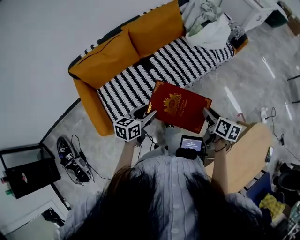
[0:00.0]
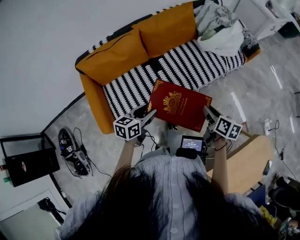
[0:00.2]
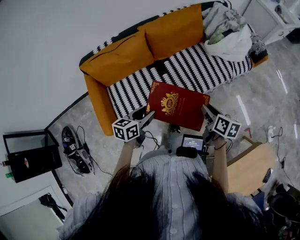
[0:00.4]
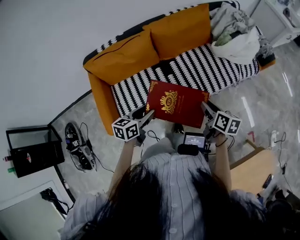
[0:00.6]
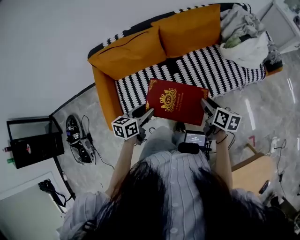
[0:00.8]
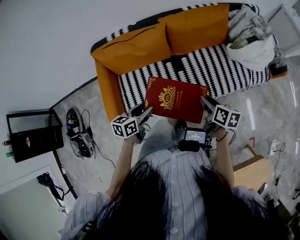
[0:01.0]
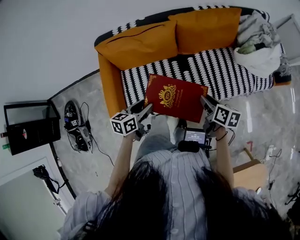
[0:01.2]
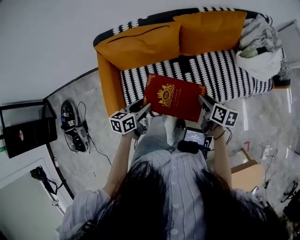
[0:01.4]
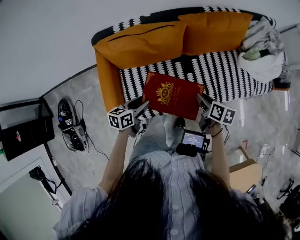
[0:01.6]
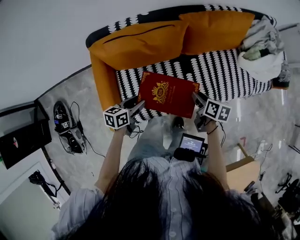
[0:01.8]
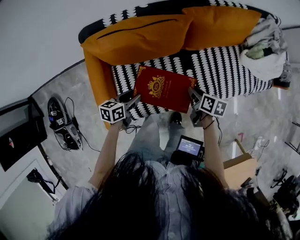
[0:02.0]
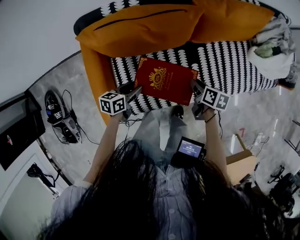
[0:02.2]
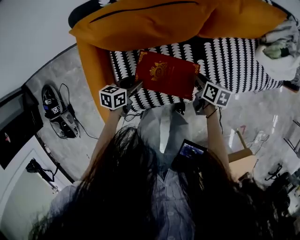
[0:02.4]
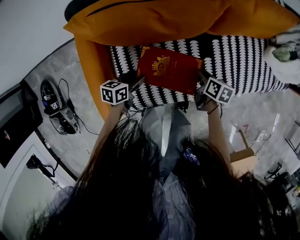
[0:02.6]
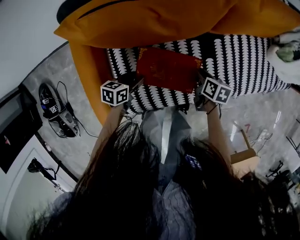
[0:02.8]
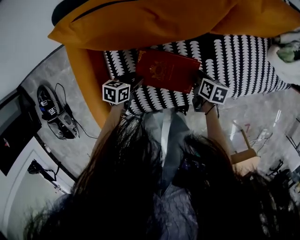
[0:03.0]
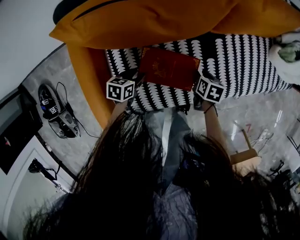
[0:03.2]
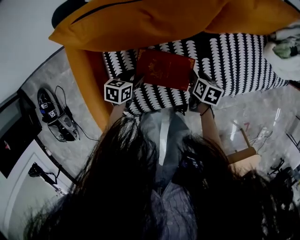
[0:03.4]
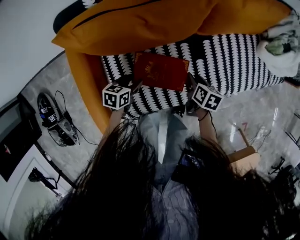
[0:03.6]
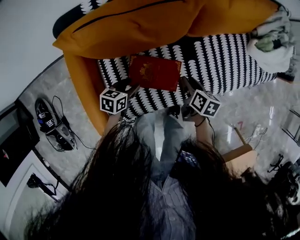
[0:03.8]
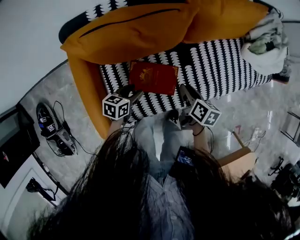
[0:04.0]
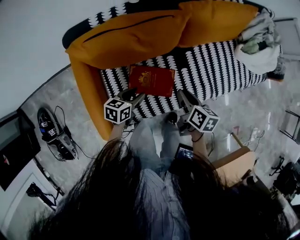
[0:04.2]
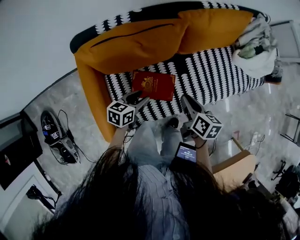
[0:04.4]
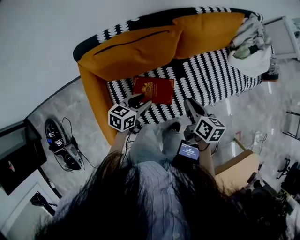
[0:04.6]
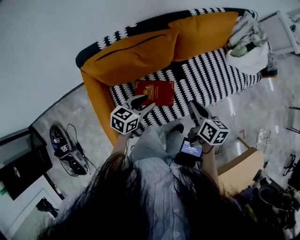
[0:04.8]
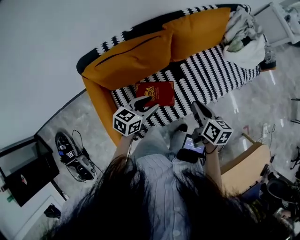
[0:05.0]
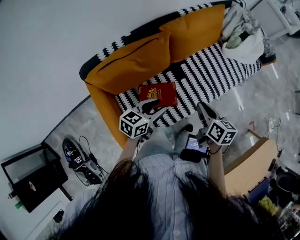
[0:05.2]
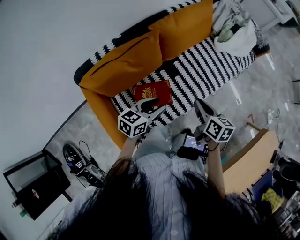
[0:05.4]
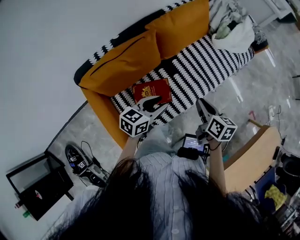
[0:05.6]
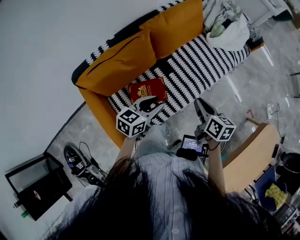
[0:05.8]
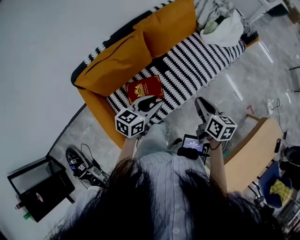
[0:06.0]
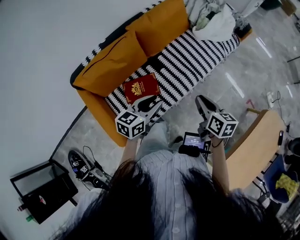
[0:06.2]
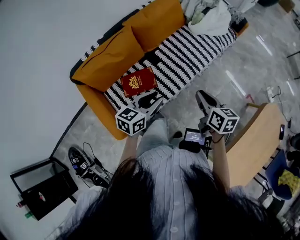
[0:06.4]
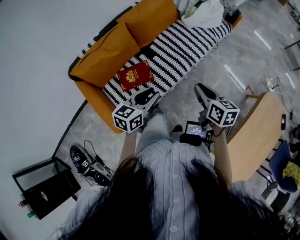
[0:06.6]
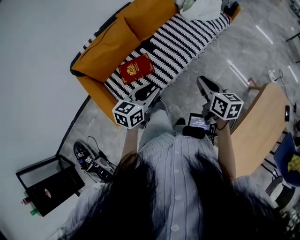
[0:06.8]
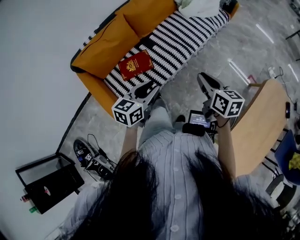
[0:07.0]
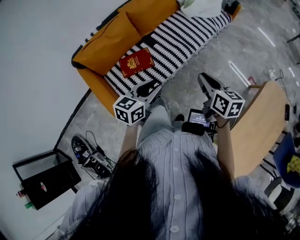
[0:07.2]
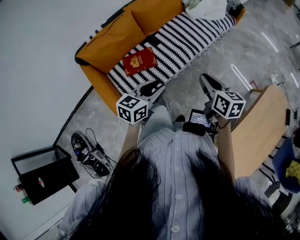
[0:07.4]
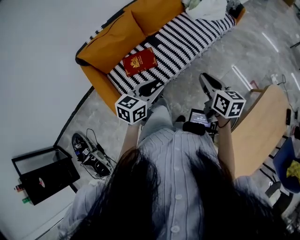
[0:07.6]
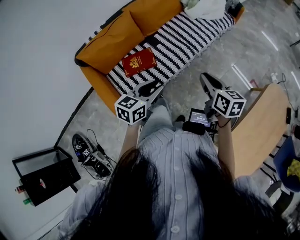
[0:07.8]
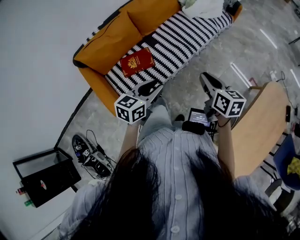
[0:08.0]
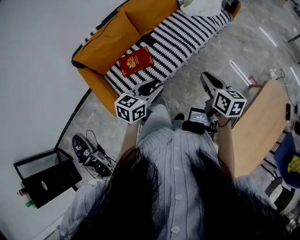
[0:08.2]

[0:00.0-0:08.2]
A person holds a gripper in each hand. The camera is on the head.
0:00.0 to 0:01.6: The left gripper ends up about 30 cm from where it was, and changes its angle by approximately 30 degrees. The right gripper moves approximately 35 cm, and rotates approximately 30 degrees.
0:01.6 to 0:03.2: The grippers both shift downward by approximately 30 cm. The right gripper swivels about 30 degrees.
0:03.2 to 0:05.0: Both grippers travel together upward, roughly 35 cm. The left gripper changes its angle by some 40 degrees. Meanwhile the right gripper tips its fingers upward by approximately 30 degrees, and closes its fingers.
0:05.0 to 0:06.6: The left gripper travels to the right, backward and upward by roughly 30 cm. The right gripper shifts roughly 30 cm to the right and backward.
0:06.6 to 0:08.2: Both grippers move backward, about 5 cm.

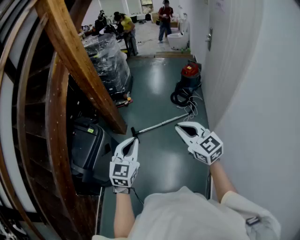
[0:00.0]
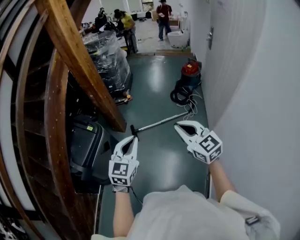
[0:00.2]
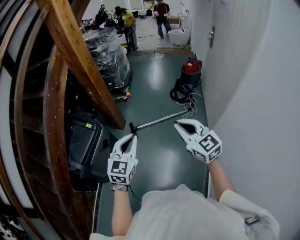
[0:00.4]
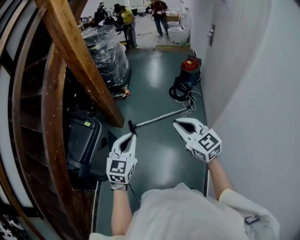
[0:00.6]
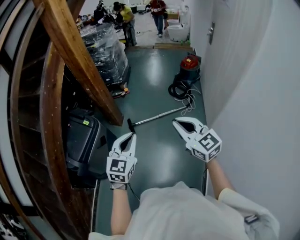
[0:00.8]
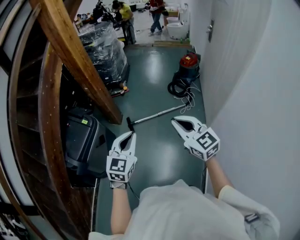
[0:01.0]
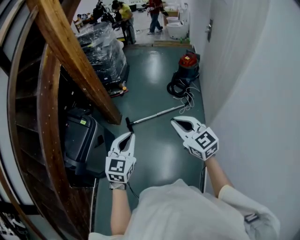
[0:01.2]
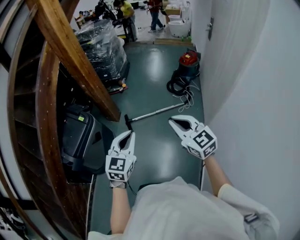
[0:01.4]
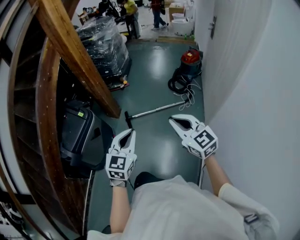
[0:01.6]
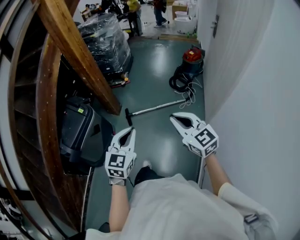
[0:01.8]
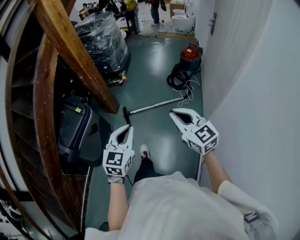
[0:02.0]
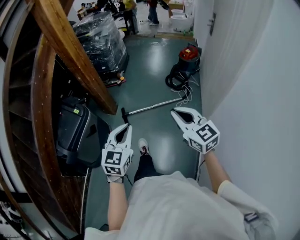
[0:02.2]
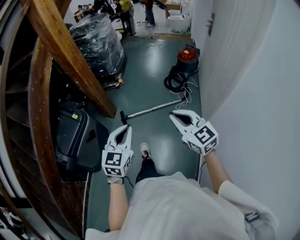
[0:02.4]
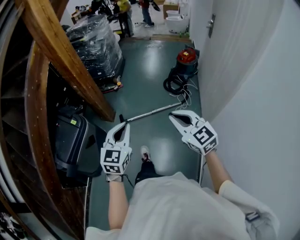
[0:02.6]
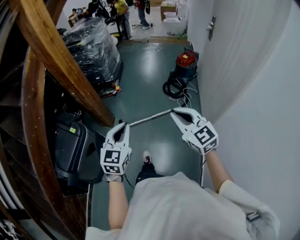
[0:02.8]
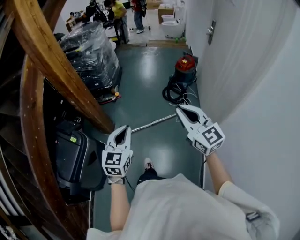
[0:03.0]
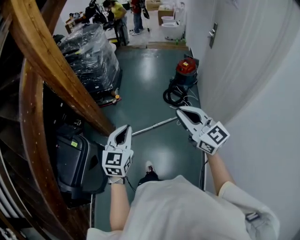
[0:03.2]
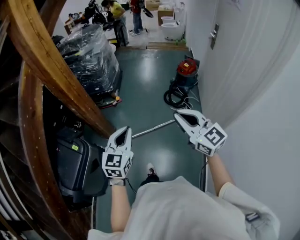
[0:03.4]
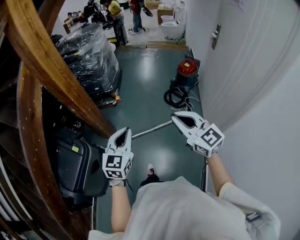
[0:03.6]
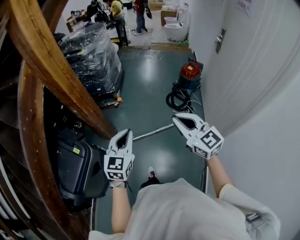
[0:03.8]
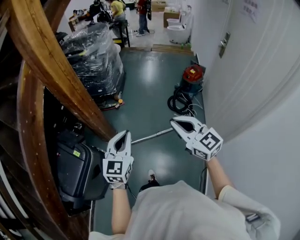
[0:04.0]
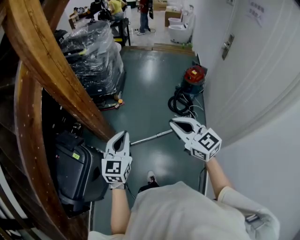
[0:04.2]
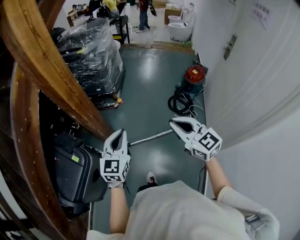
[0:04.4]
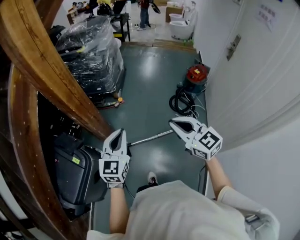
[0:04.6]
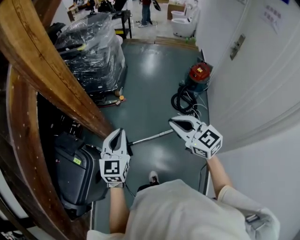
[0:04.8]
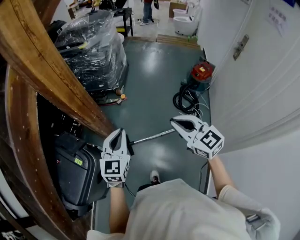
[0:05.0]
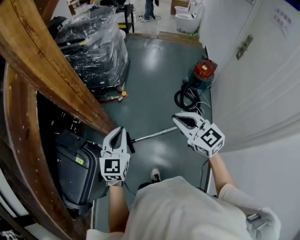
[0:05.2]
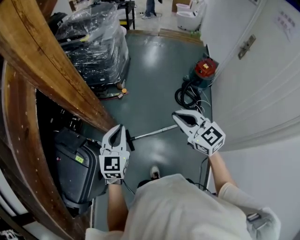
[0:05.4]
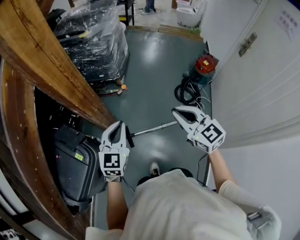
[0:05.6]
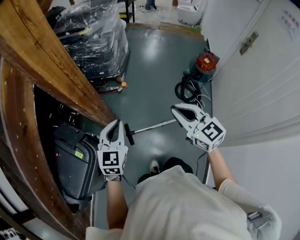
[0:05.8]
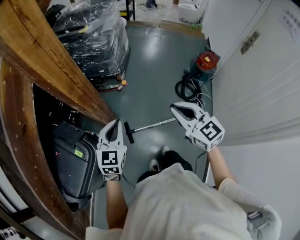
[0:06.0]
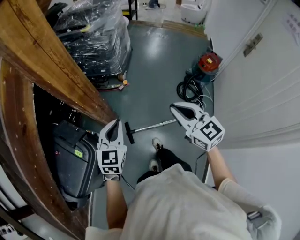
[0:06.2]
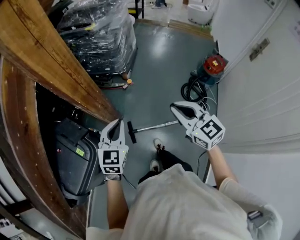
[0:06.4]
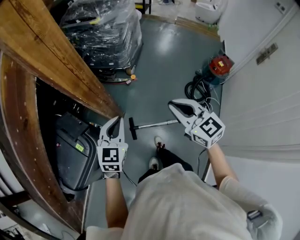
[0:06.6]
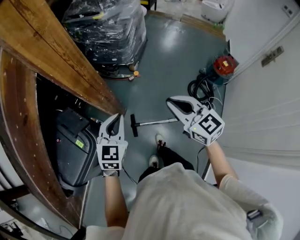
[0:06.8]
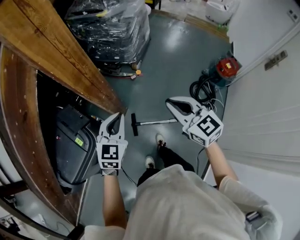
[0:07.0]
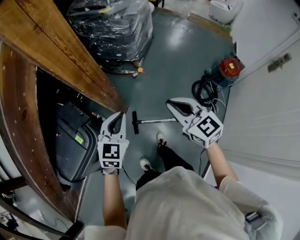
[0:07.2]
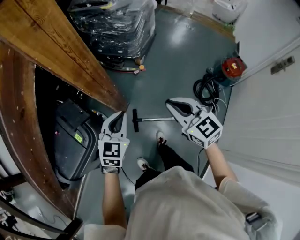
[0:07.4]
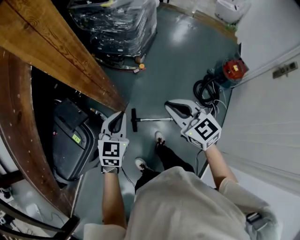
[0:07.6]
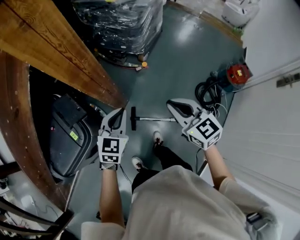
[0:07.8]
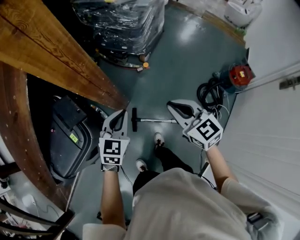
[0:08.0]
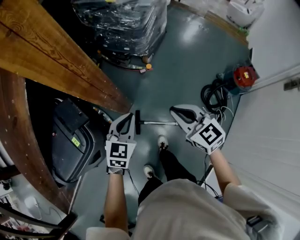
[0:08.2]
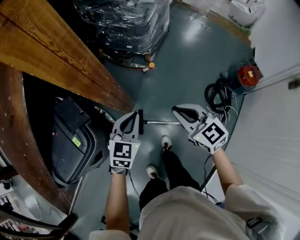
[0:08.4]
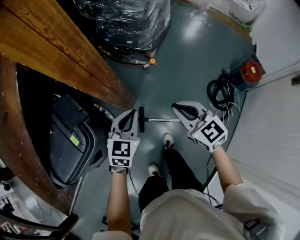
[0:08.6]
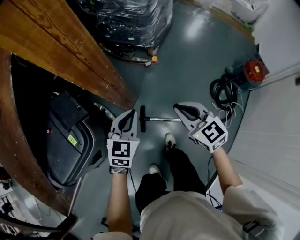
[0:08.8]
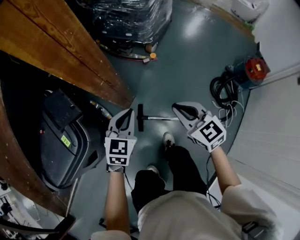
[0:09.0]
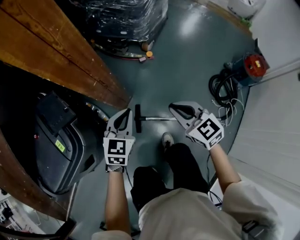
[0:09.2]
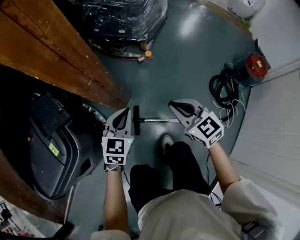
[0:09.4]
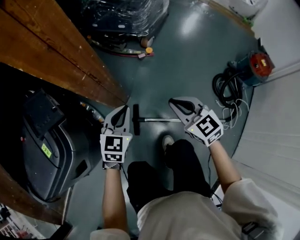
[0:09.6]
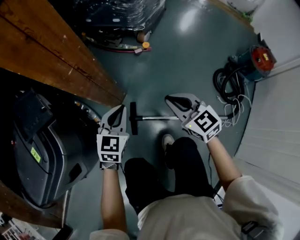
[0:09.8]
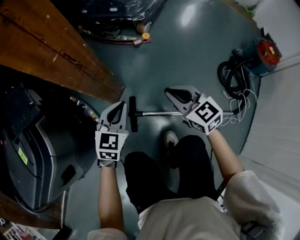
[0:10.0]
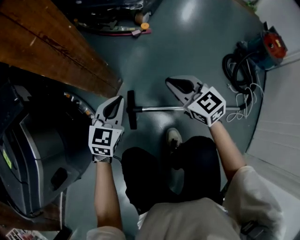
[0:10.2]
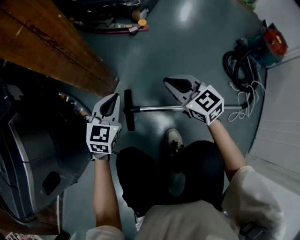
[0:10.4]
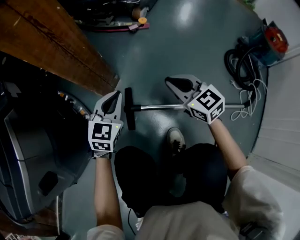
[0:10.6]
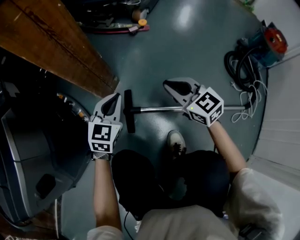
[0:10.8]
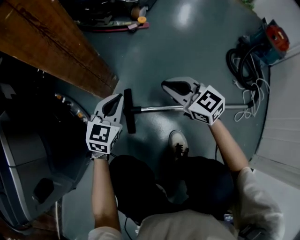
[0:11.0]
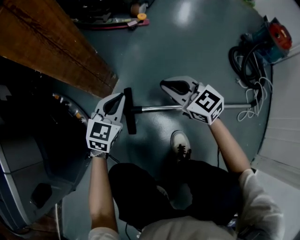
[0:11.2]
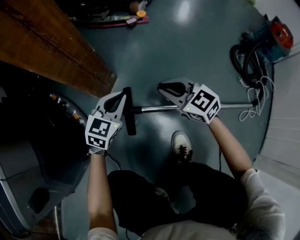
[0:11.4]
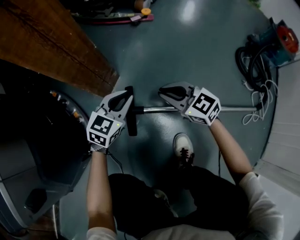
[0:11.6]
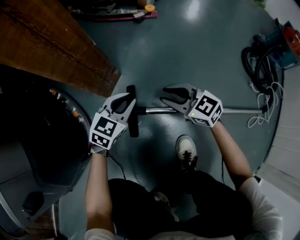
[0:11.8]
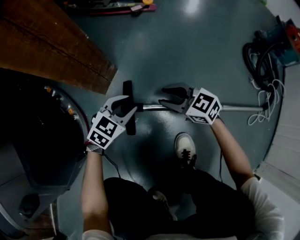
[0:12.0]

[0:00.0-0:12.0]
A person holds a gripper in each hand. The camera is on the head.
0:00.0 to 0:01.6: The grippers both shift to the right by some 5 cm.
0:01.6 to 0:03.0: Both grippers travel together forward, some 20 cm.
0:03.0 to 0:04.4: The left gripper heads forward, covering roughly 20 cm, while the right gripper heads forward and to the left, covering some 20 cm.
0:04.4 to 0:06.0: The left gripper moves forward, to the left and downward, roughly 15 cm. Meanwhile the right gripper moves forward, roughly 10 cm.
0:06.0 to 0:07.6: The grippers both shift forward and downward by about 10 cm.
0:07.6 to 0:09.0: Both grippers travel together downward, roughly 20 cm.
0:09.0 to 0:10.4: The grippers both shift downward by roughly 35 cm.
0:10.4 to 0:12.0: The two grippers go approximately 20 cm downward. The right gripper swivels about 20 degrees, and opens its fingers, while the left gripper swivels roughly 30 degrees, and opens.

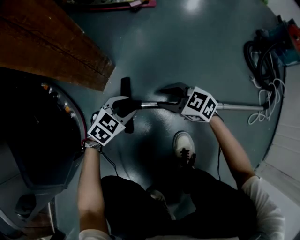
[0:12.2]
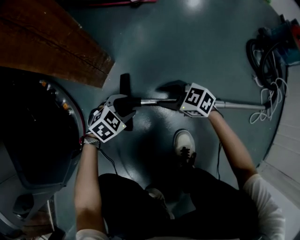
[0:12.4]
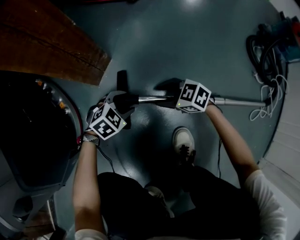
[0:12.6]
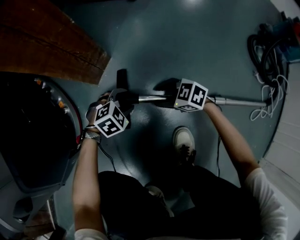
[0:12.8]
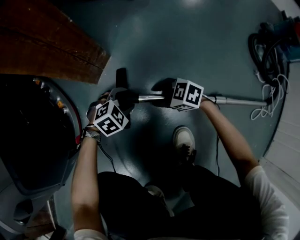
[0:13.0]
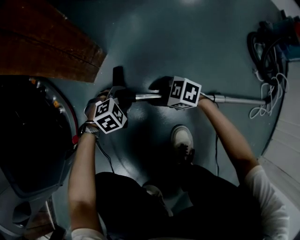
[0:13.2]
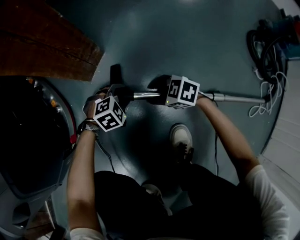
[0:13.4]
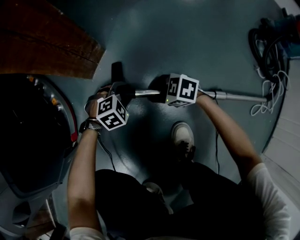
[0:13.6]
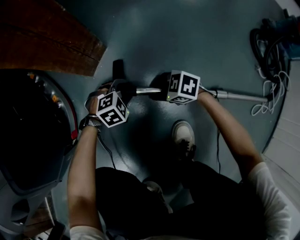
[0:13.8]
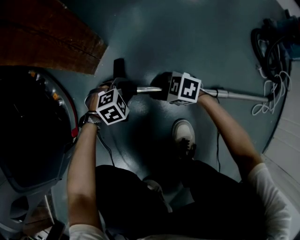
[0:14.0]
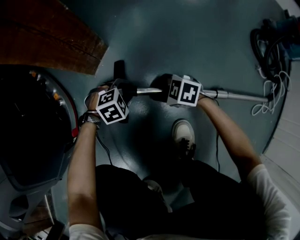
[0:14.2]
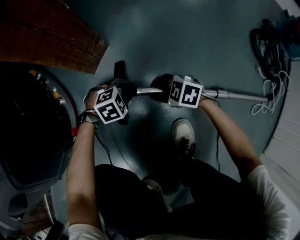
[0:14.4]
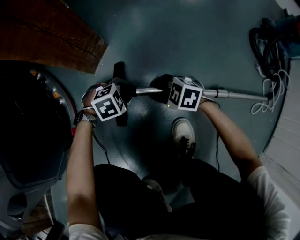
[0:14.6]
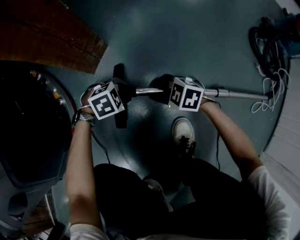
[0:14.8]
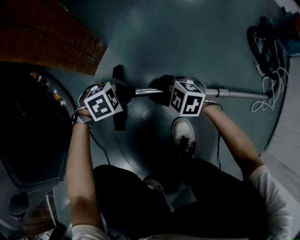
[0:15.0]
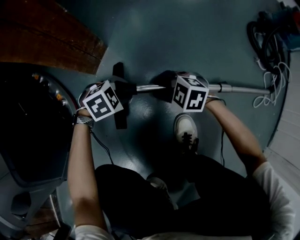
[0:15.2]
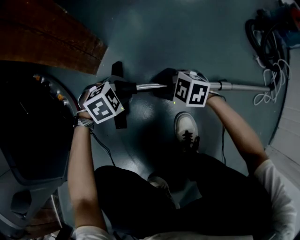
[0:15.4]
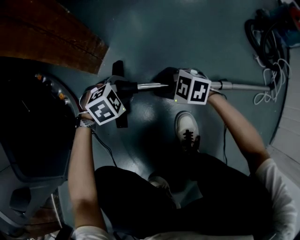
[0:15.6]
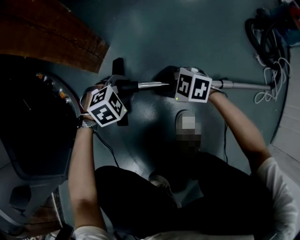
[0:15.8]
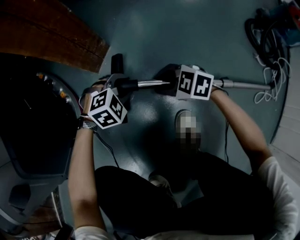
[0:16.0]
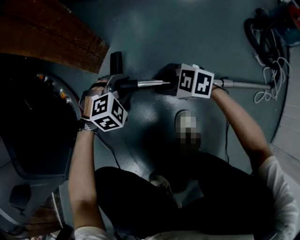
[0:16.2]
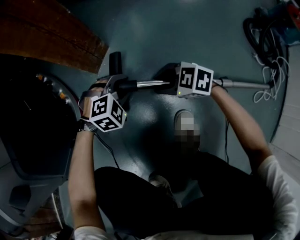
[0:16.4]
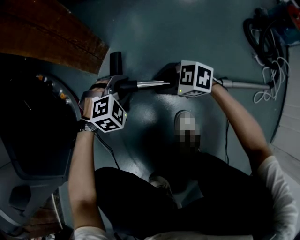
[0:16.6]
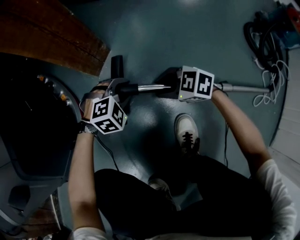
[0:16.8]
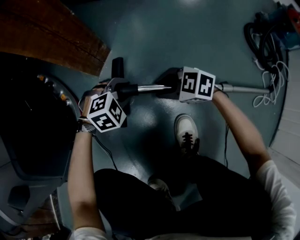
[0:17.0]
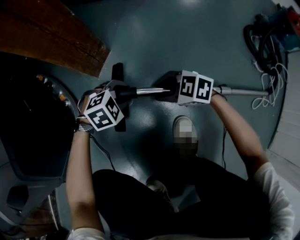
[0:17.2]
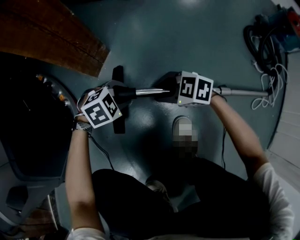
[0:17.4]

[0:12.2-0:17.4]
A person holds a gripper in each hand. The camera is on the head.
0:12.2 to 0:14.0: Both grippers move downward, about 10 cm. The right gripper rotates some 30 degrees, while the left gripper changes its angle by about 30 degrees.
0:14.0 to 0:15.6: The two grippers go roughly 5 cm upward.
